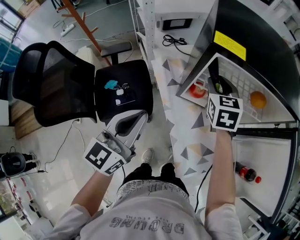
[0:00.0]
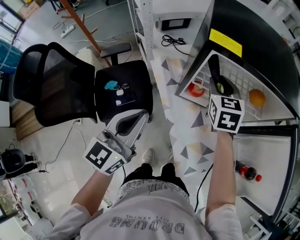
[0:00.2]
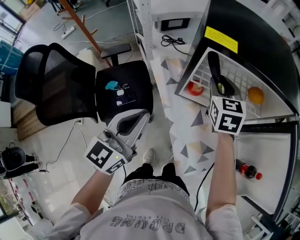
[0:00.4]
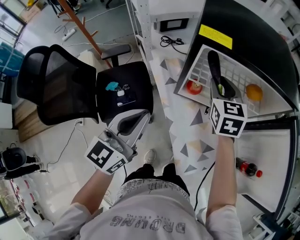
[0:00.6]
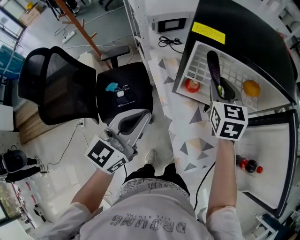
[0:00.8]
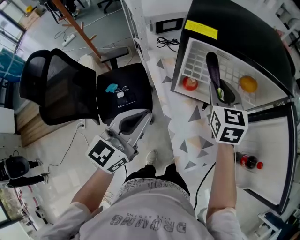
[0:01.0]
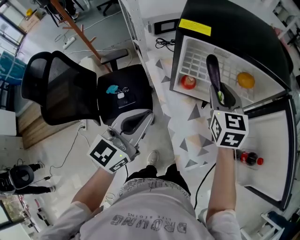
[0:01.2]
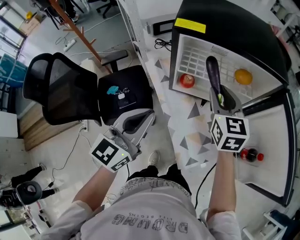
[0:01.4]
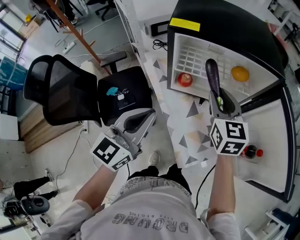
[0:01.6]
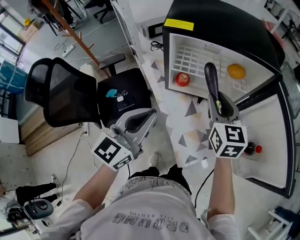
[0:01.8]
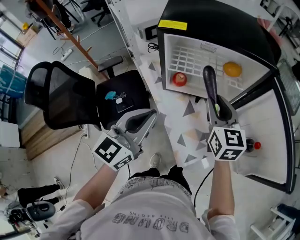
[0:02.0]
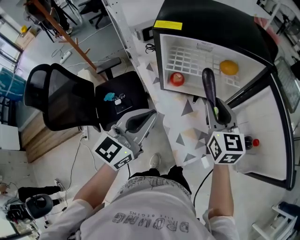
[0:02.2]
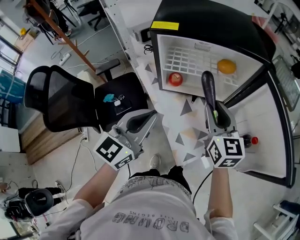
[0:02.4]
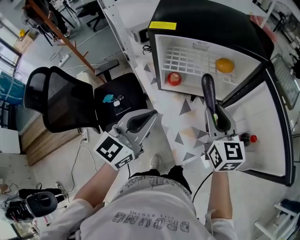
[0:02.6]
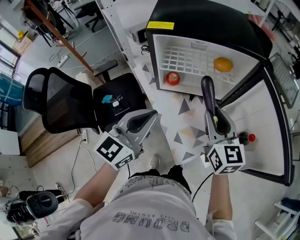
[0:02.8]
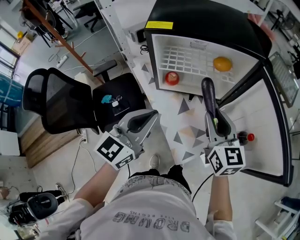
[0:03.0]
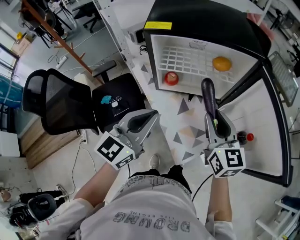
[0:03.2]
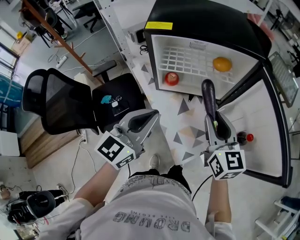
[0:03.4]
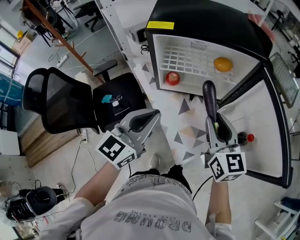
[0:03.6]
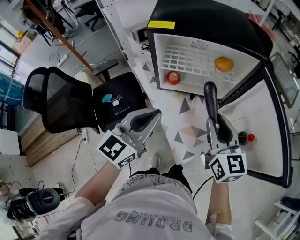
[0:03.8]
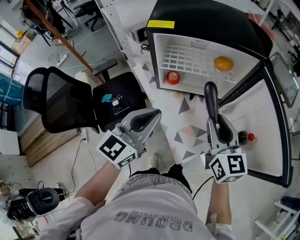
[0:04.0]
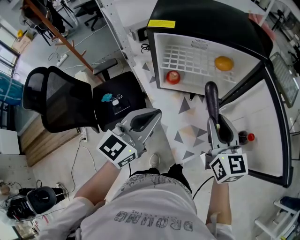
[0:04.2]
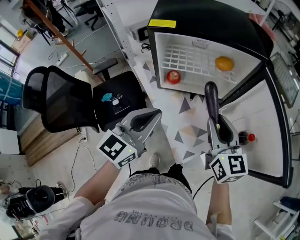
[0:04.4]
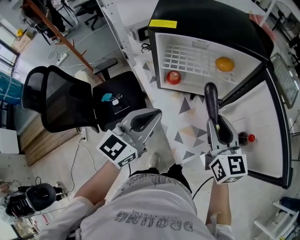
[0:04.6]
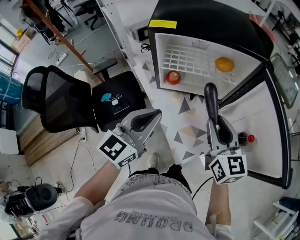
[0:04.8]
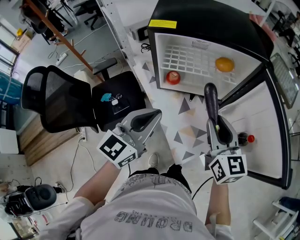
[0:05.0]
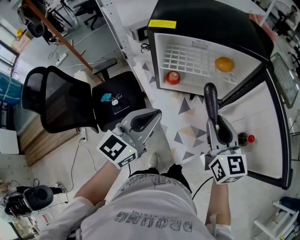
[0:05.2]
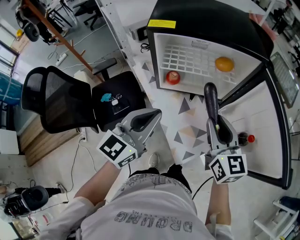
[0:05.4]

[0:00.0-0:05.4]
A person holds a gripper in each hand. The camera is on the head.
0:00.0 to 0:01.4: The left gripper is displaced to the right by roughly 10 cm. The right gripper travels backward, to the right and upward by about 15 cm.
0:01.4 to 0:02.8: The left gripper travels to the right by roughly 5 cm. The right gripper travels backward and to the right by approximately 15 cm.
0:02.8 to 0:04.0: The grippers stay close to where they were, moving slightly.
0:04.0 to 0:05.4: Neither gripper changes place.

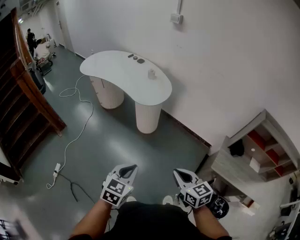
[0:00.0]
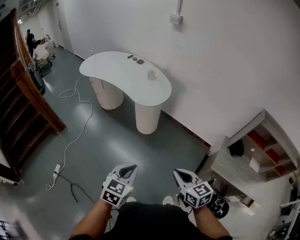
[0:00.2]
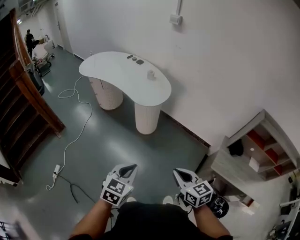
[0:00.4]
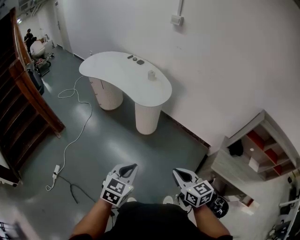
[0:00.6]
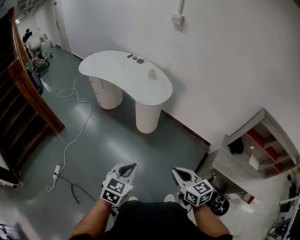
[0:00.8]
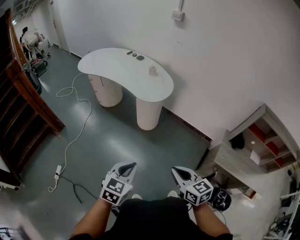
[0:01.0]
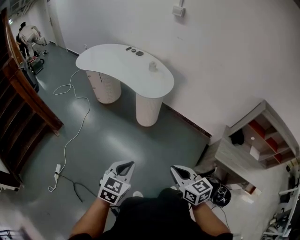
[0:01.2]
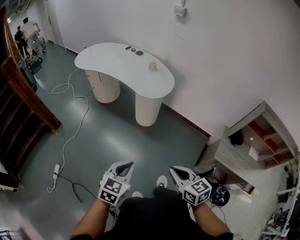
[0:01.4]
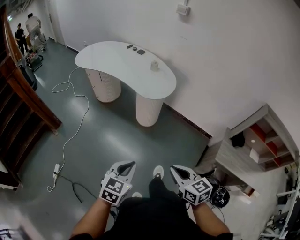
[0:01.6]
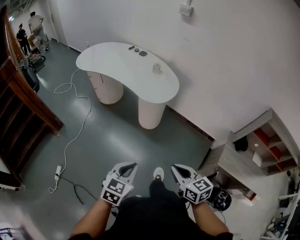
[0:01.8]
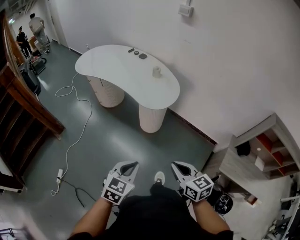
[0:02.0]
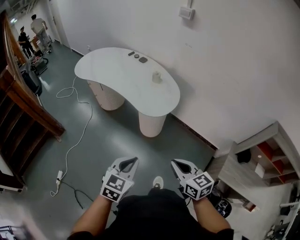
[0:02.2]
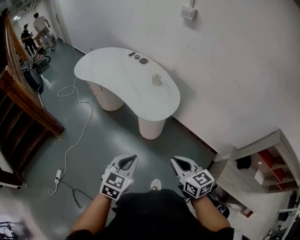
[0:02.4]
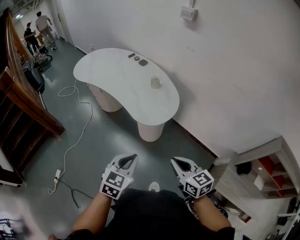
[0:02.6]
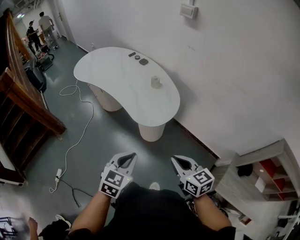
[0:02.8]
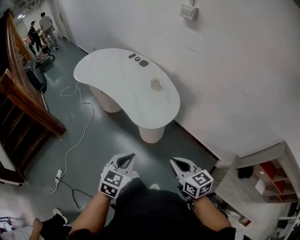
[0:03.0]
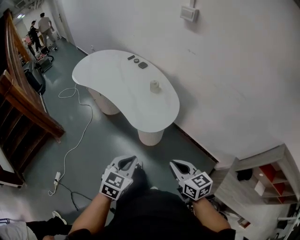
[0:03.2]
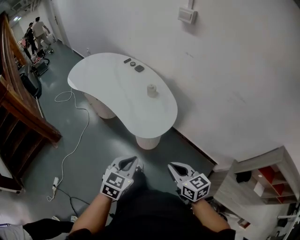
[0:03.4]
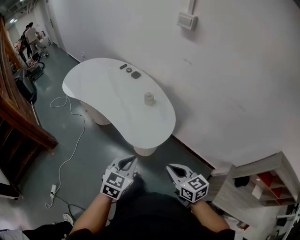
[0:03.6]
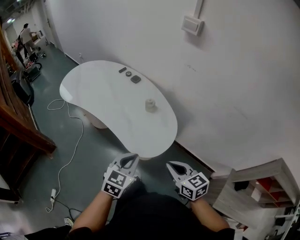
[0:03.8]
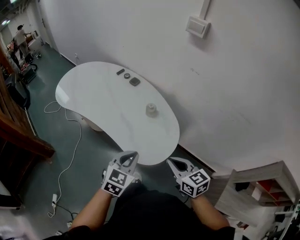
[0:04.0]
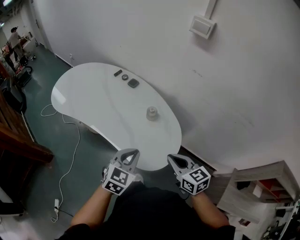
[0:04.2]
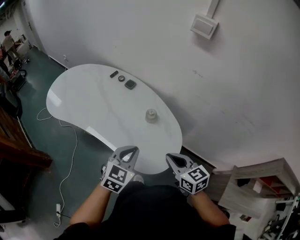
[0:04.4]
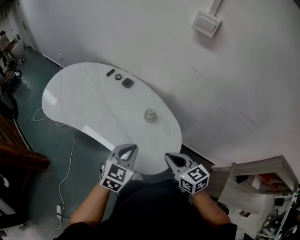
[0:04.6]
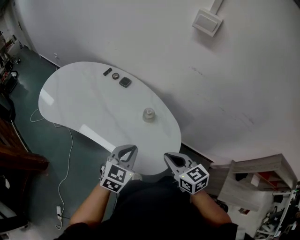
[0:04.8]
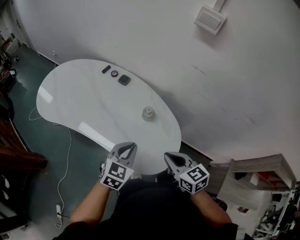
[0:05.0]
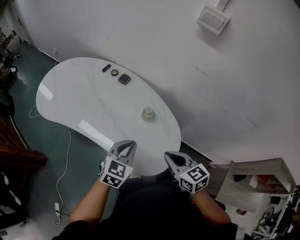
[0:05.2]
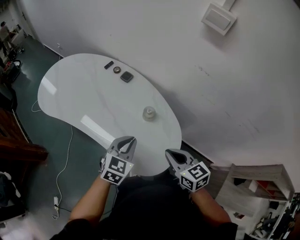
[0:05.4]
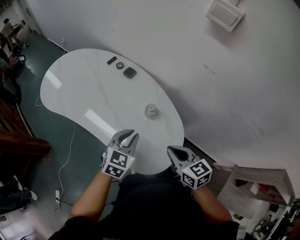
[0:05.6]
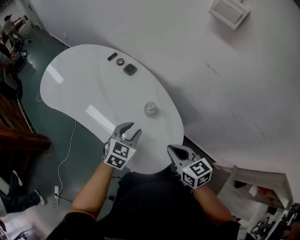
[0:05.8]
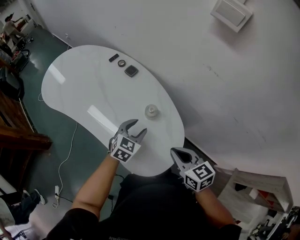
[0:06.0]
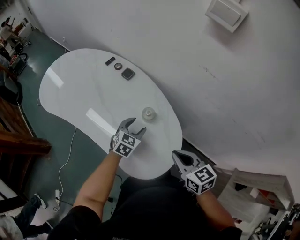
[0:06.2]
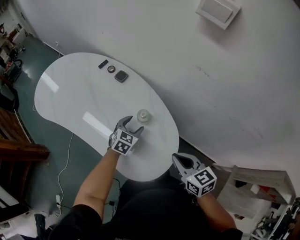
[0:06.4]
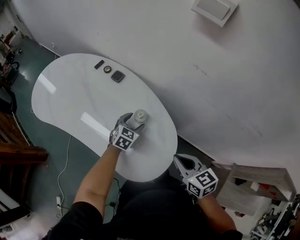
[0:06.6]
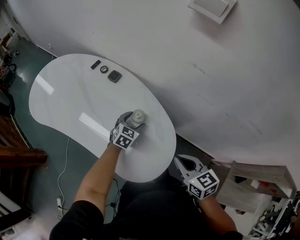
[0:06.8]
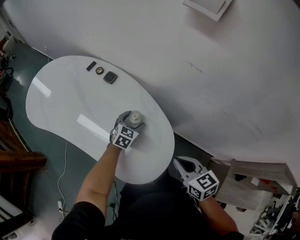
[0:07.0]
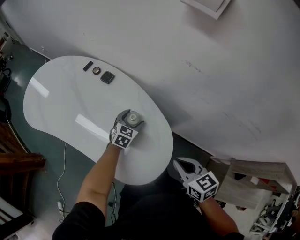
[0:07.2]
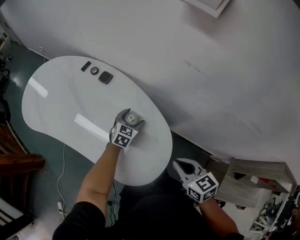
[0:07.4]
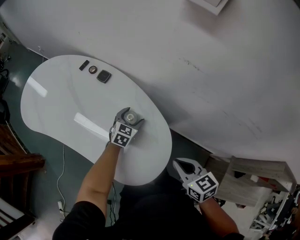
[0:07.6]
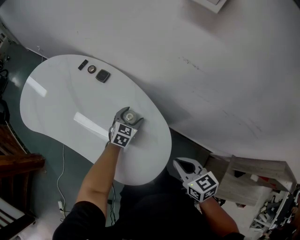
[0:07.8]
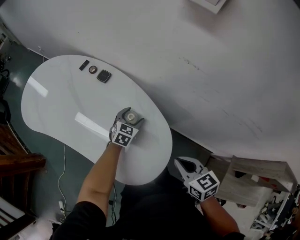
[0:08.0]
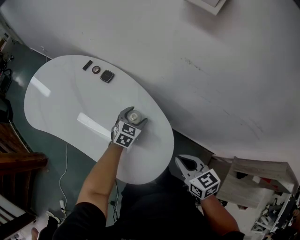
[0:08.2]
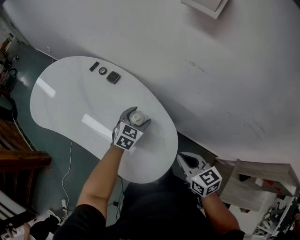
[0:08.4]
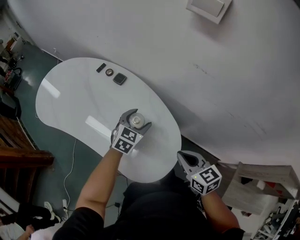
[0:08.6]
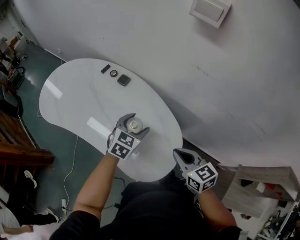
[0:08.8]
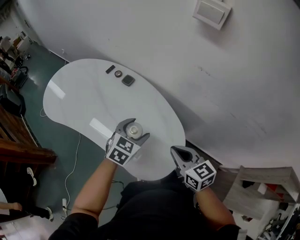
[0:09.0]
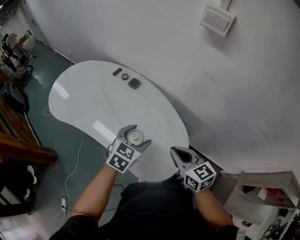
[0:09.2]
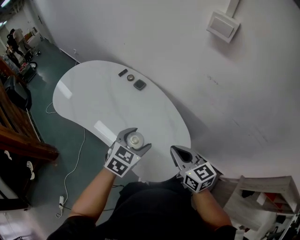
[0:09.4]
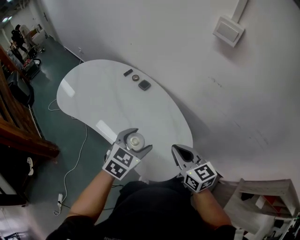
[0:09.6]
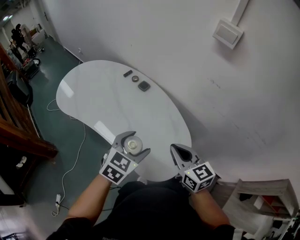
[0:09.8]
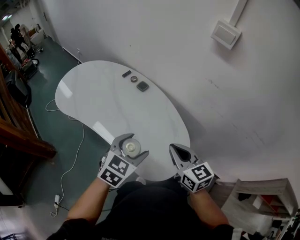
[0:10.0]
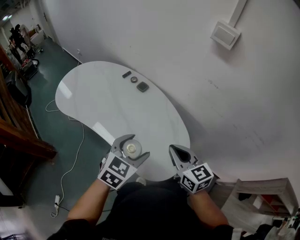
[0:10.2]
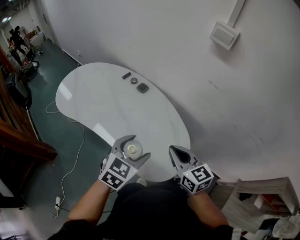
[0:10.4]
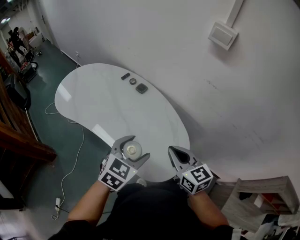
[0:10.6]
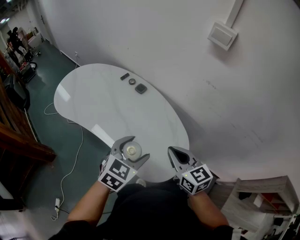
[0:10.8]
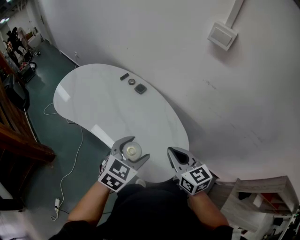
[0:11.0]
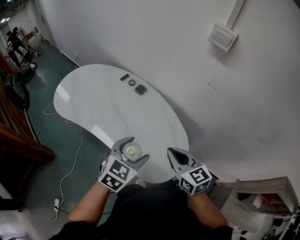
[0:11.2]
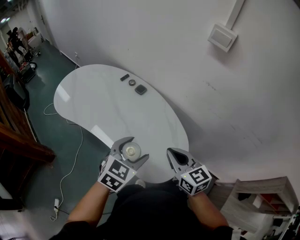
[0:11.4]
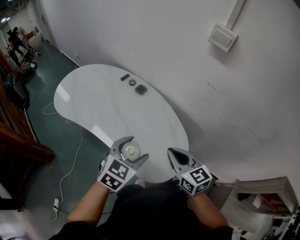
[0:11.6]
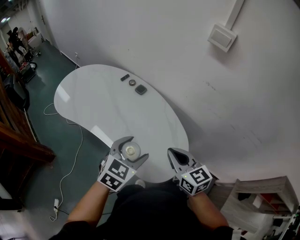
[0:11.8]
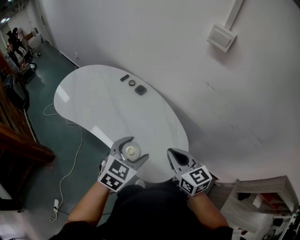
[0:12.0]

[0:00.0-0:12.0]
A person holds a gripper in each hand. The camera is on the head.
0:00.0 to 0:01.6: The grippers both shift to the left by some 10 cm.
0:01.6 to 0:03.0: The left gripper travels forward and to the right by approximately 30 cm. Meanwhile the right gripper moves forward, roughly 30 cm.
0:03.0 to 0:04.4: The two grippers go about 35 cm forward.
0:04.4 to 0:06.0: The left gripper shifts roughly 20 cm forward and downward, and opens its fingers. Meanwhile the right gripper heads forward, covering about 10 cm.
0:06.0 to 0:07.6: The left gripper goes roughly 15 cm forward, downward and to the right, and opens, while the right gripper goes approximately 5 cm to the right.
0:07.6 to 0:09.0: The right gripper goes some 10 cm to the left. Meanwhile the left gripper is displaced upward, backward and to the left by about 20 cm.
0:09.0 to 0:10.4: The left gripper goes approximately 15 cm backward, upward and to the left; the right gripper heads to the left and upward, covering about 10 cm.
0:10.4 to 0:12.0: Both grippers stay about where they are.

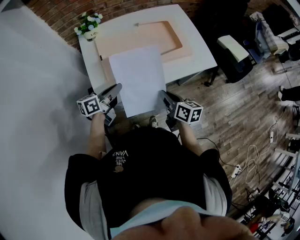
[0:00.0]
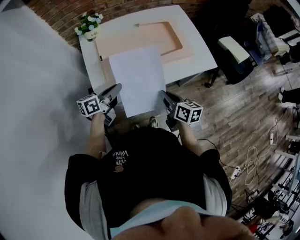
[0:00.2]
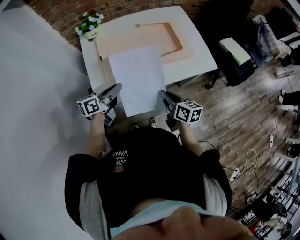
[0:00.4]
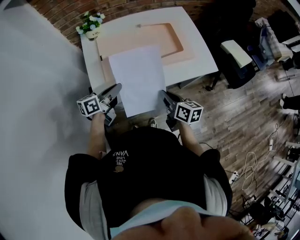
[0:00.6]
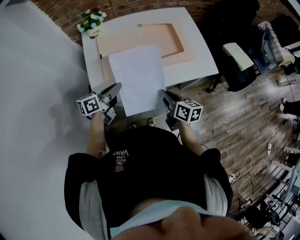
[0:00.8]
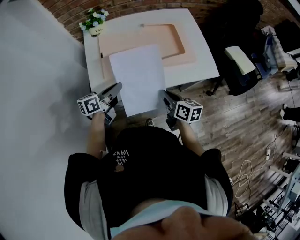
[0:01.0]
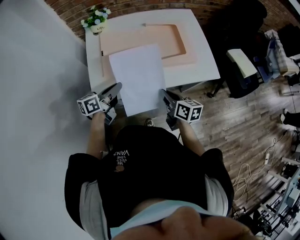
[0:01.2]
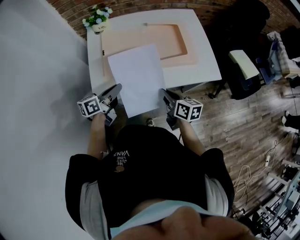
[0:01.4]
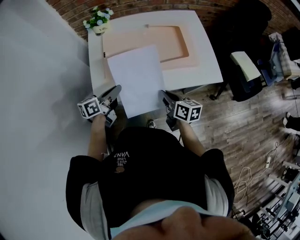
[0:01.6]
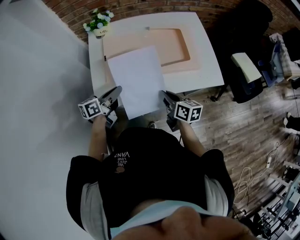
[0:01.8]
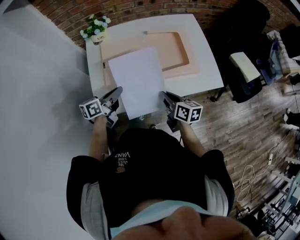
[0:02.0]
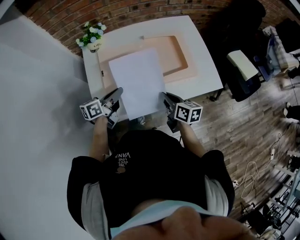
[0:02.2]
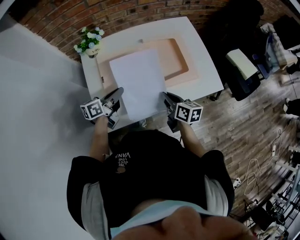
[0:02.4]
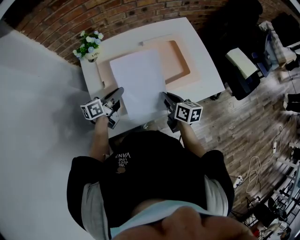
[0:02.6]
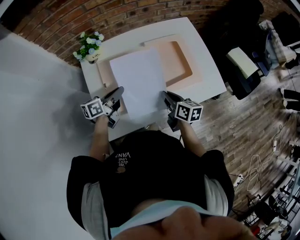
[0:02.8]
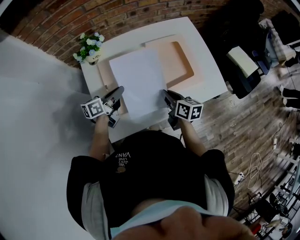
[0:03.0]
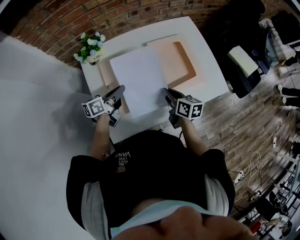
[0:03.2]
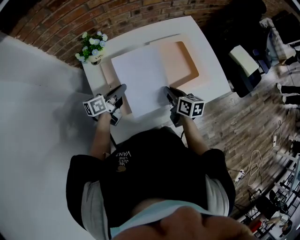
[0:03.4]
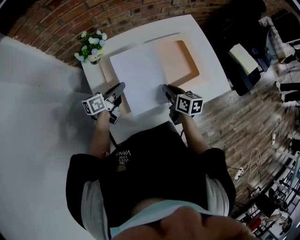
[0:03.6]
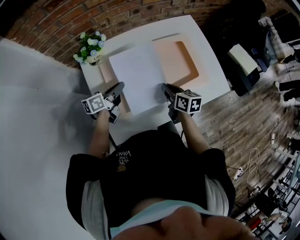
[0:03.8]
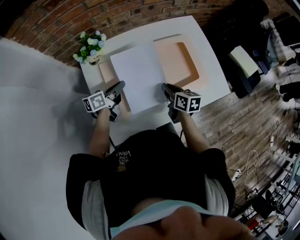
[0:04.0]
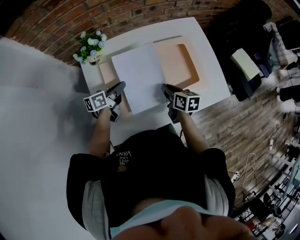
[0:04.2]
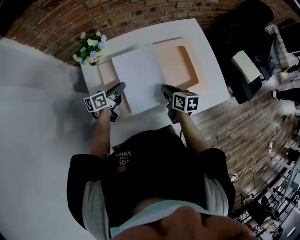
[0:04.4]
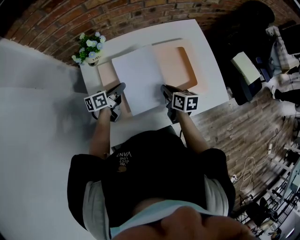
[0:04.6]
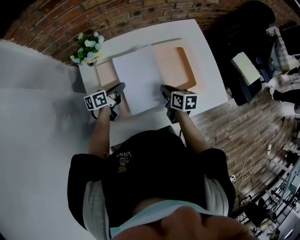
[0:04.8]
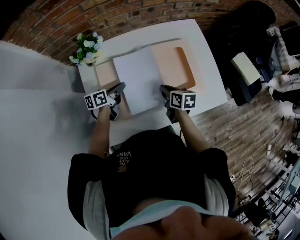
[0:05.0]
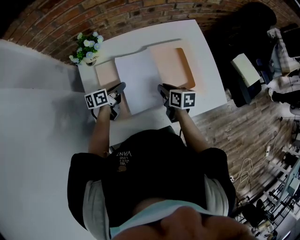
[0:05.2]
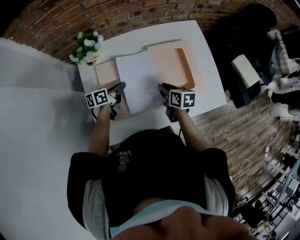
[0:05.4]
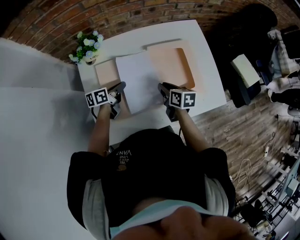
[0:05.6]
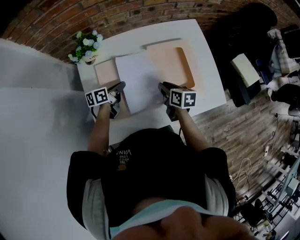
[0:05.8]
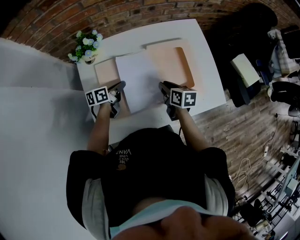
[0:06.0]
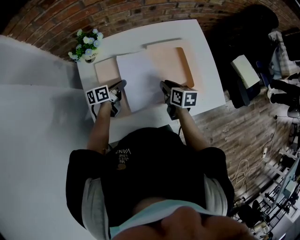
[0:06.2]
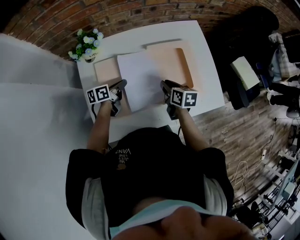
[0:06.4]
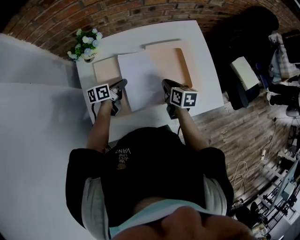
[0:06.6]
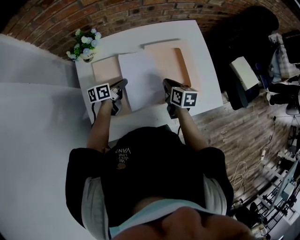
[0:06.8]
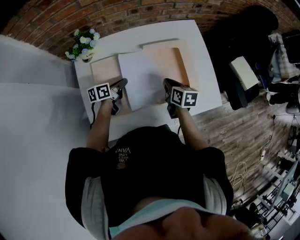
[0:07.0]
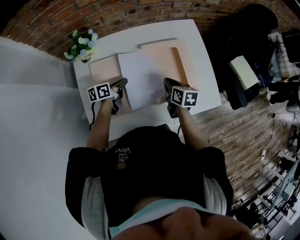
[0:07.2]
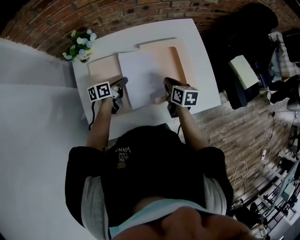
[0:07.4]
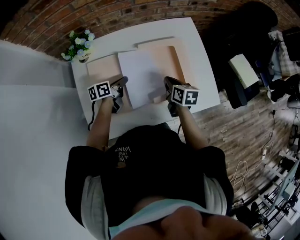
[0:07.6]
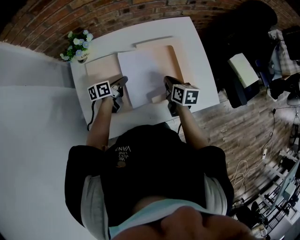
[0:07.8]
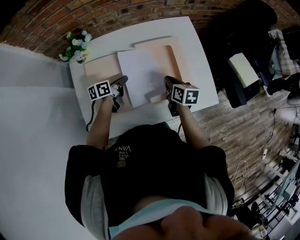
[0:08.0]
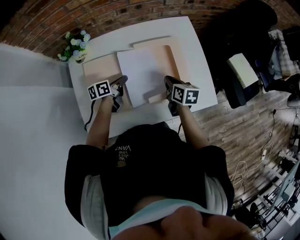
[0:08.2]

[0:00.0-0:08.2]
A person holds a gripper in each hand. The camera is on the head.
0:00.0 to 0:01.6: The right gripper is displaced forward by some 5 cm.
0:01.6 to 0:03.2: Both grippers travel together forward, roughly 15 cm.
0:03.2 to 0:05.0: The left gripper is displaced downward and forward by roughly 10 cm, while the right gripper travels forward by roughly 5 cm.
0:05.0 to 0:06.6: The grippers move only a little.
0:06.6 to 0:08.2: Both grippers travel together to the right, some 5 cm.
